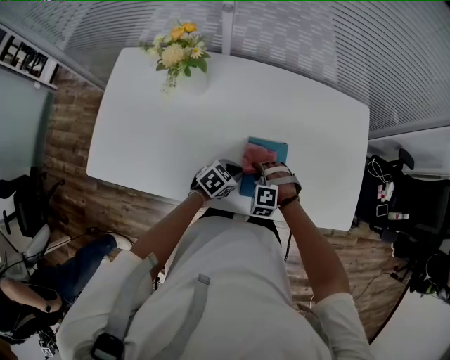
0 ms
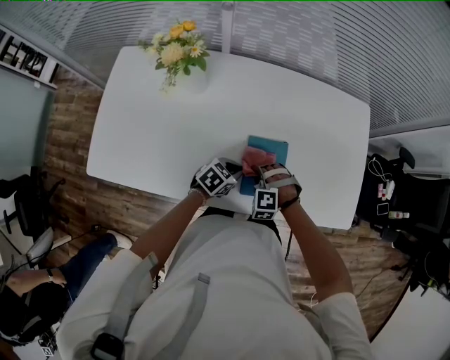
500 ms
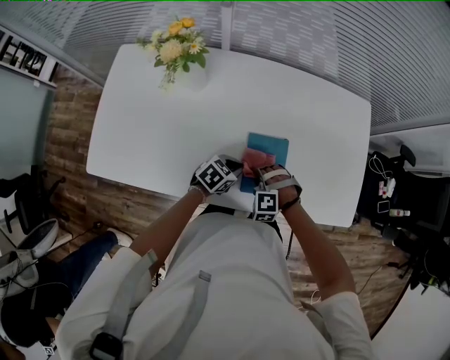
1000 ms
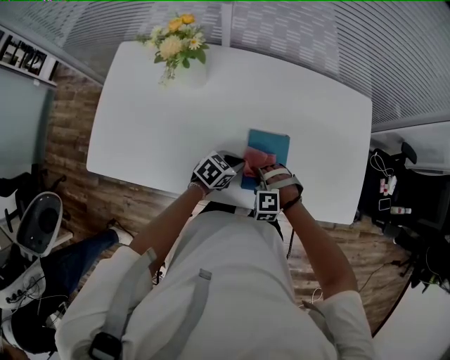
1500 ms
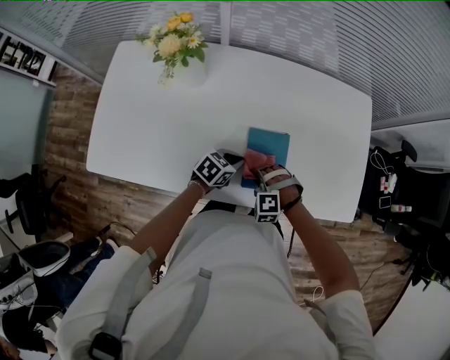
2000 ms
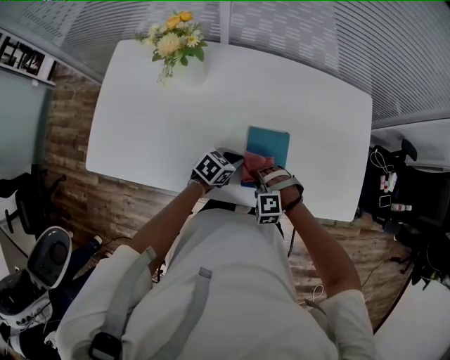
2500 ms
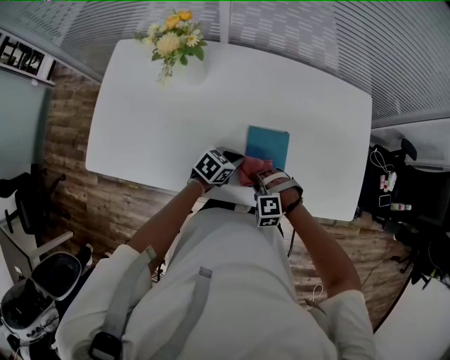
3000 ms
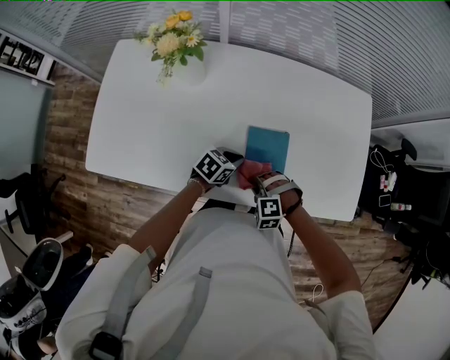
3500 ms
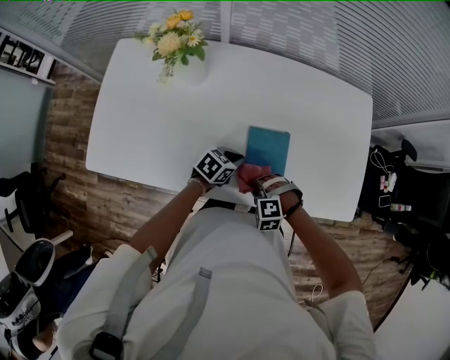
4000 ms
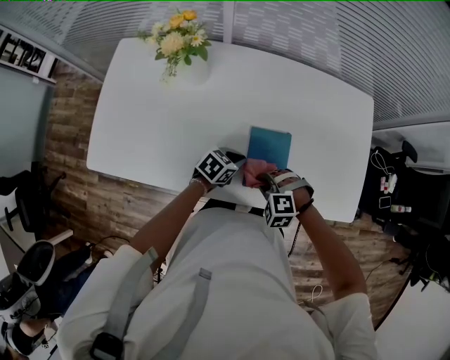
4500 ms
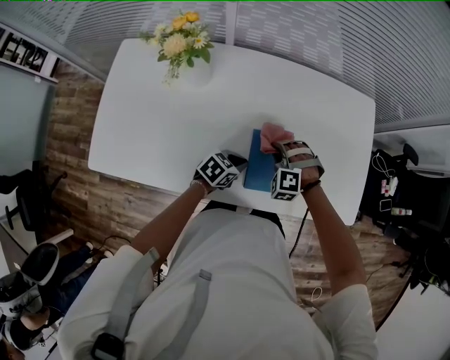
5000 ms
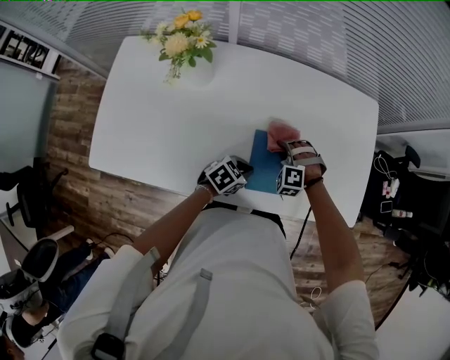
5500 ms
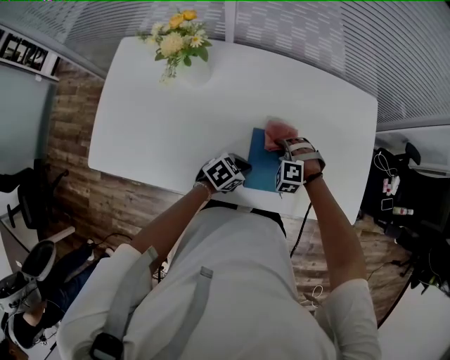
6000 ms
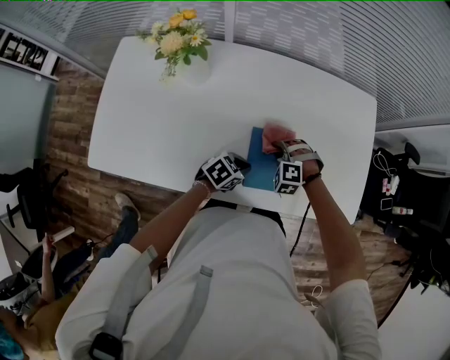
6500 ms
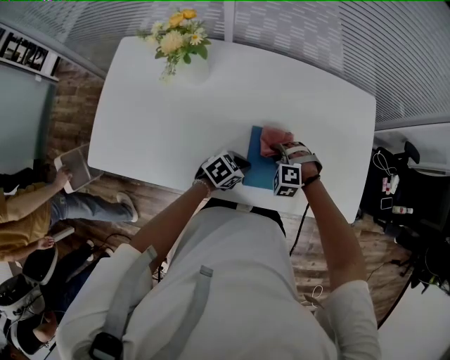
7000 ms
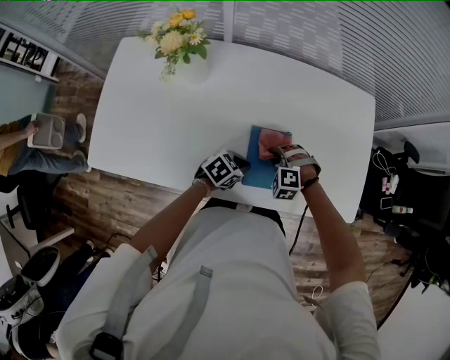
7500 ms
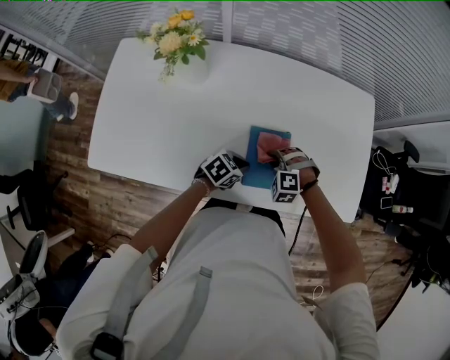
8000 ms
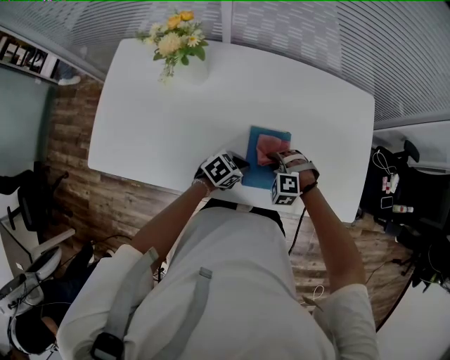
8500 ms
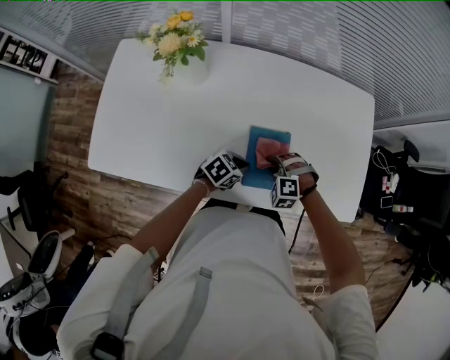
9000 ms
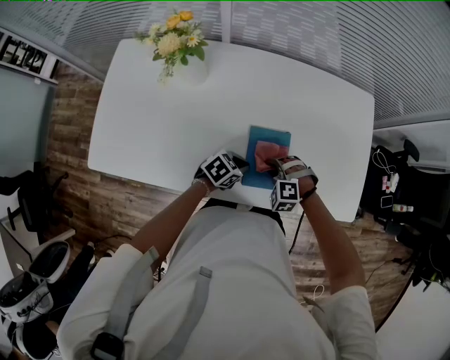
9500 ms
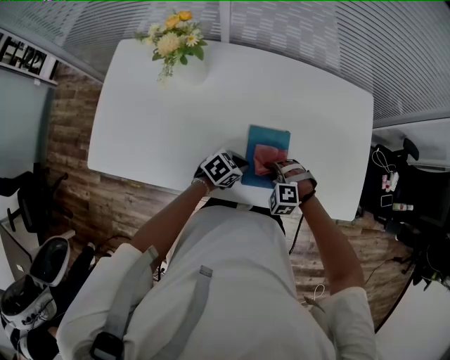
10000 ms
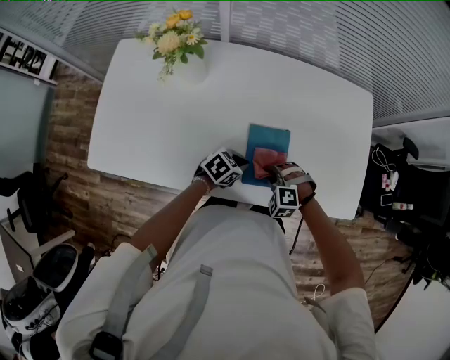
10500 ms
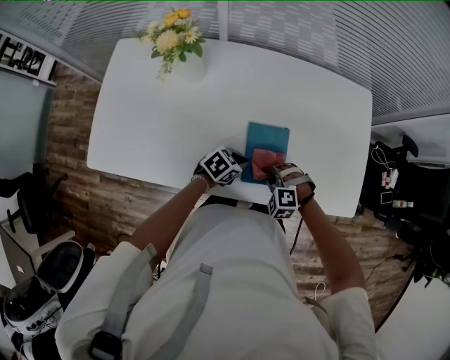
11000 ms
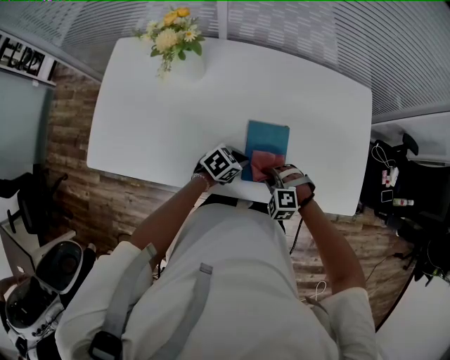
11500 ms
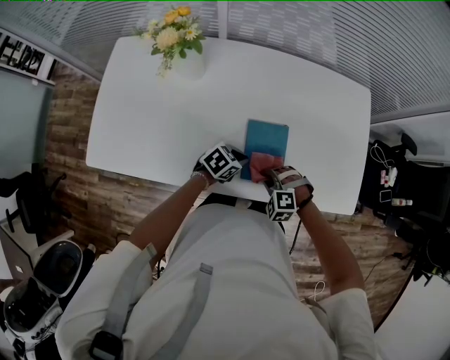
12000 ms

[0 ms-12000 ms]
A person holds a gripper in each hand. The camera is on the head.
0 ms to 2000 ms: The right gripper travels backward by roughly 5 cm.
2000 ms to 4000 ms: The right gripper heads backward, covering roughly 5 cm.
4000 ms to 6000 ms: The right gripper moves forward, about 15 cm.
6000 ms to 8000 ms: The right gripper travels backward by some 5 cm.
8000 ms to 10000 ms: The grippers make only small movements.
10000 ms to 12000 ms: The right gripper shifts by some 5 cm.

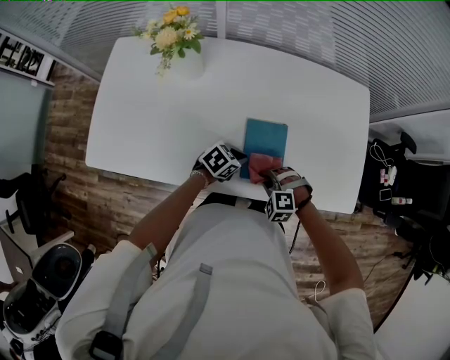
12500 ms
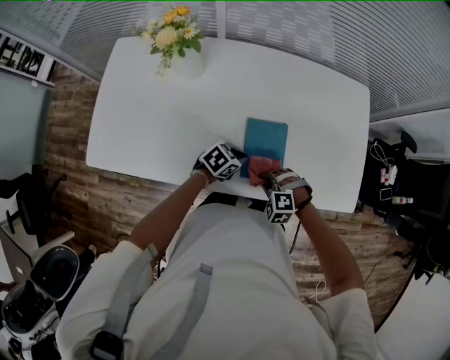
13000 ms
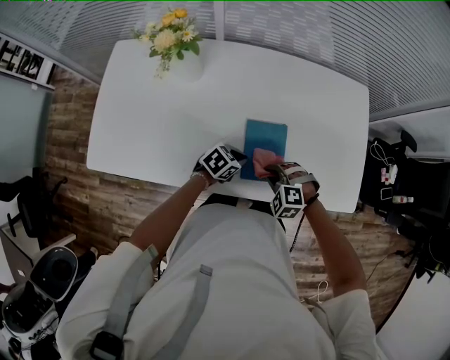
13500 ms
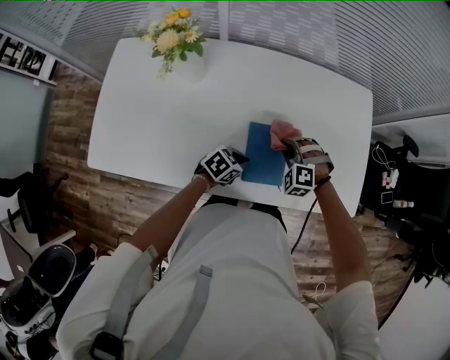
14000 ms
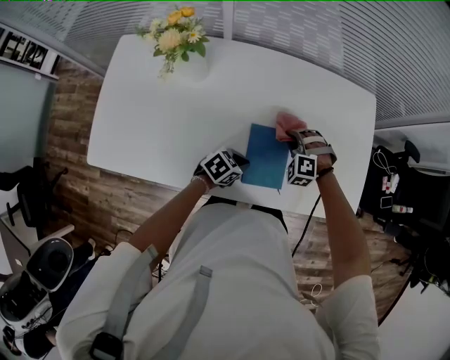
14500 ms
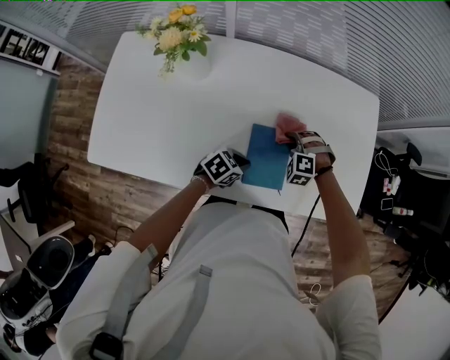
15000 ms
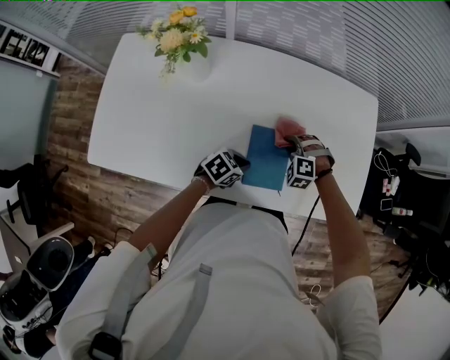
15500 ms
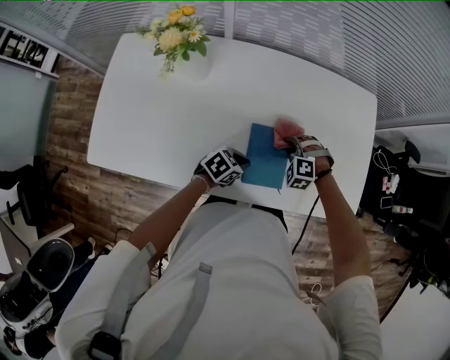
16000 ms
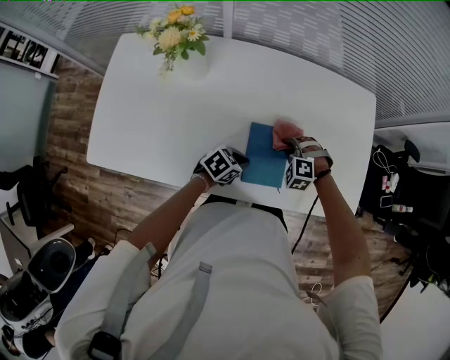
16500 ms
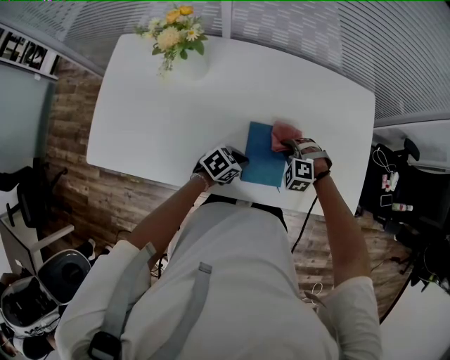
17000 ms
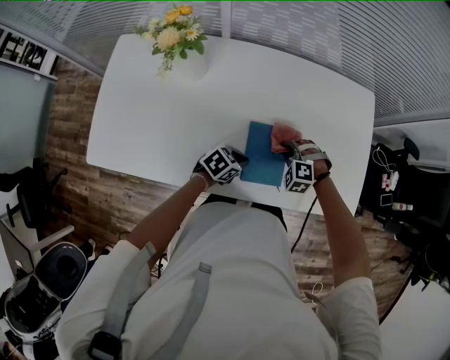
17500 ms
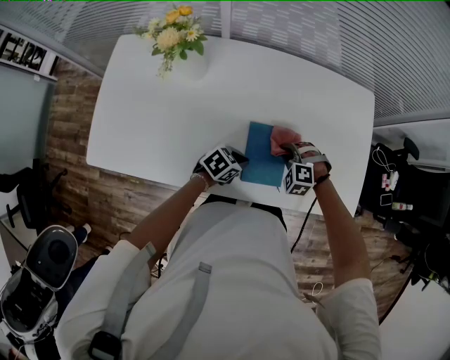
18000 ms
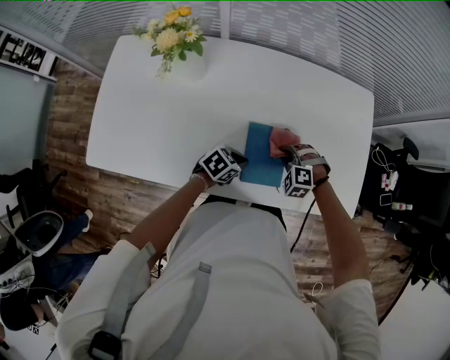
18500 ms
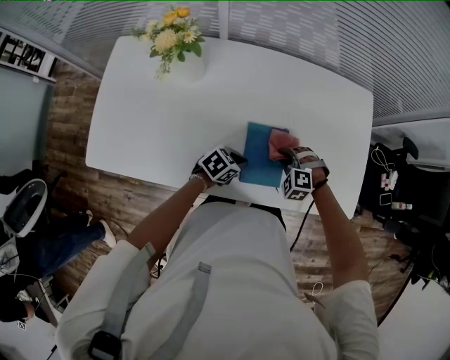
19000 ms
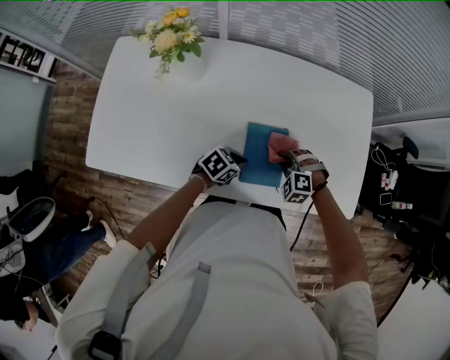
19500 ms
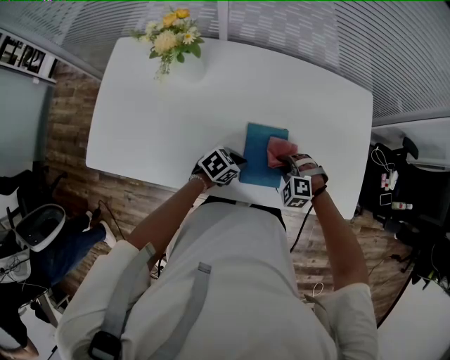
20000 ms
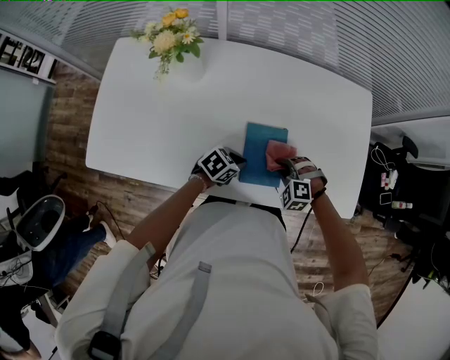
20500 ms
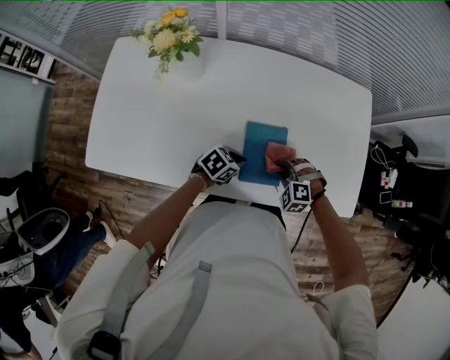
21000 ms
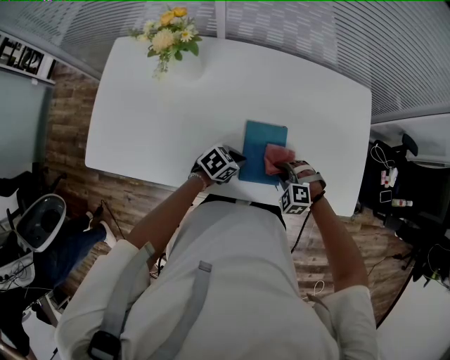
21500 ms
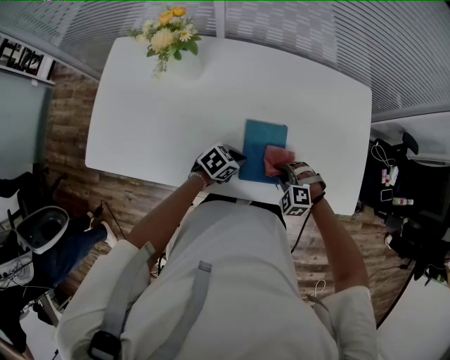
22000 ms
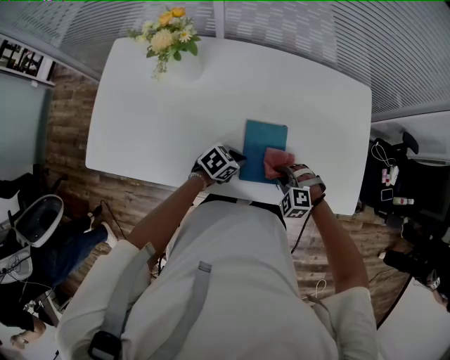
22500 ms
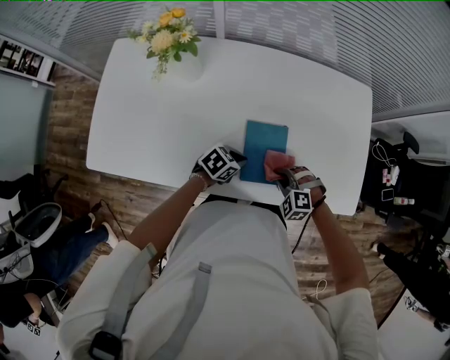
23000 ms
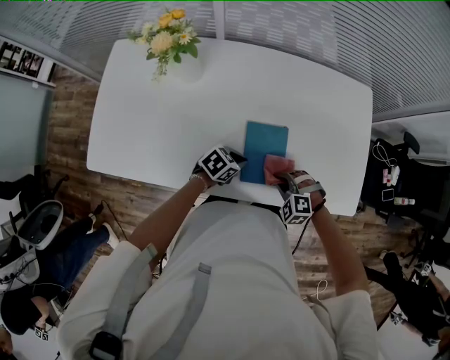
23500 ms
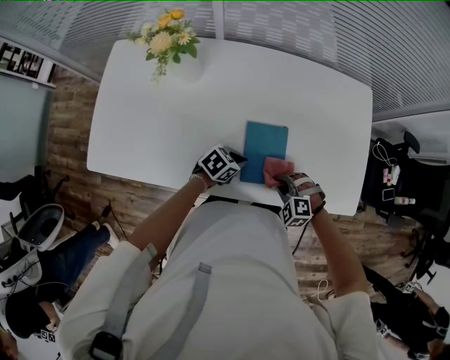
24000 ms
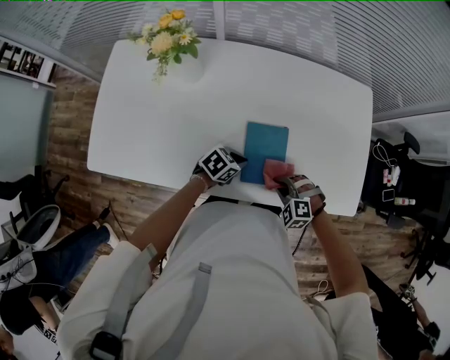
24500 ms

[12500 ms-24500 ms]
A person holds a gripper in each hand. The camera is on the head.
12500 ms to 14500 ms: The right gripper changes place by approximately 20 cm.
14500 ms to 16500 ms: There are only small adjustments of the grippers.
16500 ms to 18500 ms: There are only small adjustments of the grippers.
18500 ms to 20500 ms: The grippers stay close to where they were, moving slightly.
20500 ms to 22500 ms: The grippers stay close to where they were, moving slightly.
22500 ms to 24500 ms: The grippers move only a little.

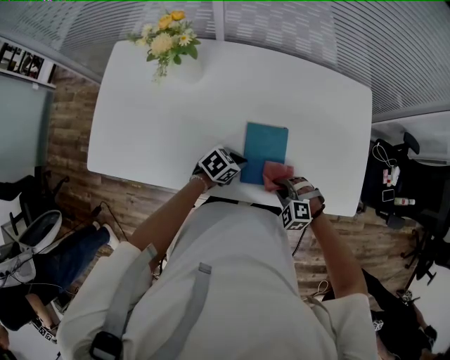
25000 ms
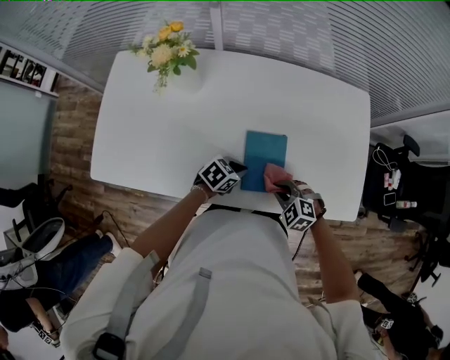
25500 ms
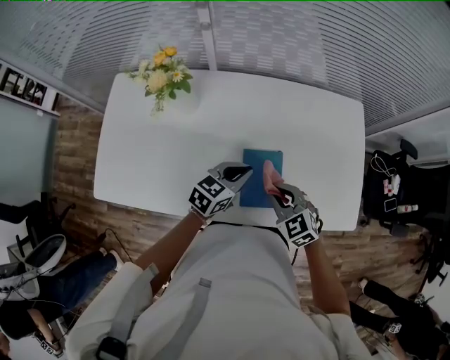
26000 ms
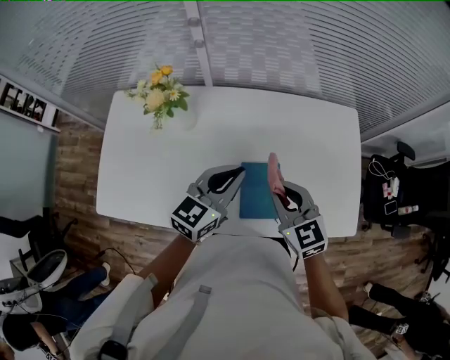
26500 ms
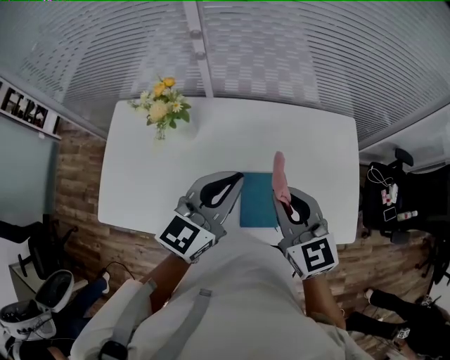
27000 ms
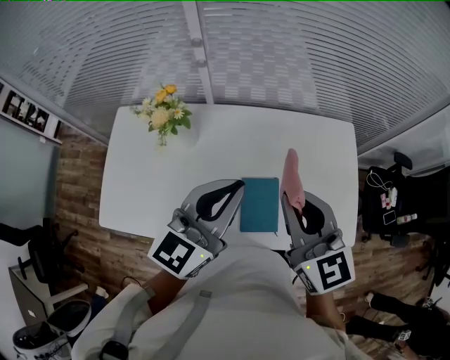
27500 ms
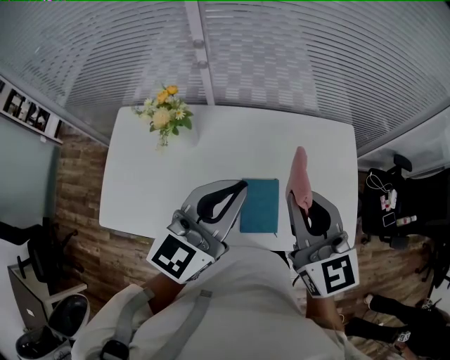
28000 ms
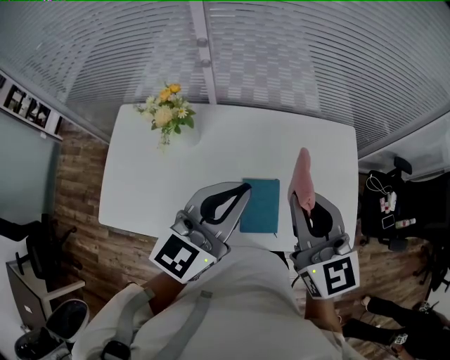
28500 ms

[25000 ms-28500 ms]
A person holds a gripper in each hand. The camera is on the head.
25000 ms to 27000 ms: The two grippers go roughly 35 cm upward. The right gripper tilts its fingers about 50 degrees upward, while the left gripper tilts its fingers roughly 40 degrees upward.
27000 ms to 28500 ms: Both grippers move upward, some 5 cm.
